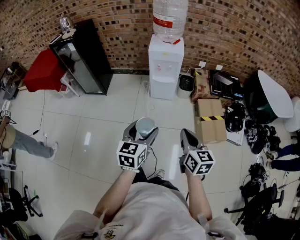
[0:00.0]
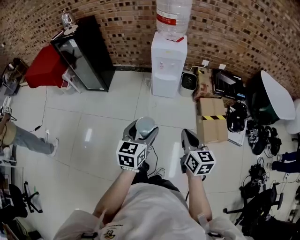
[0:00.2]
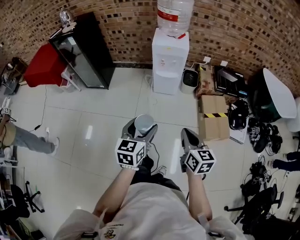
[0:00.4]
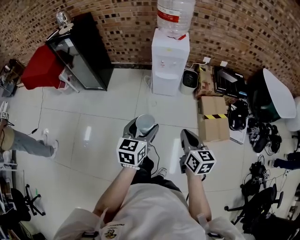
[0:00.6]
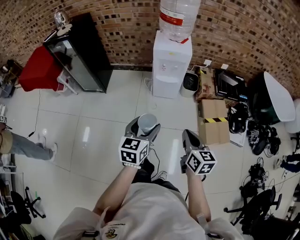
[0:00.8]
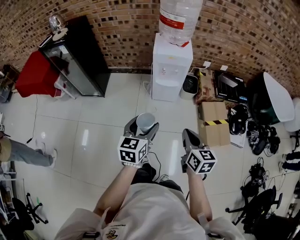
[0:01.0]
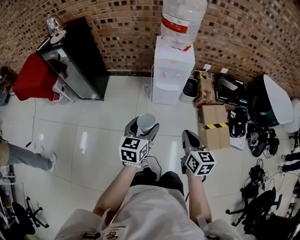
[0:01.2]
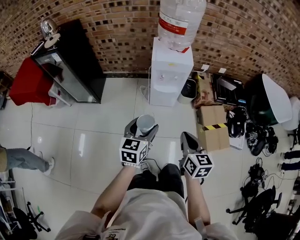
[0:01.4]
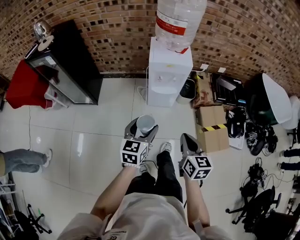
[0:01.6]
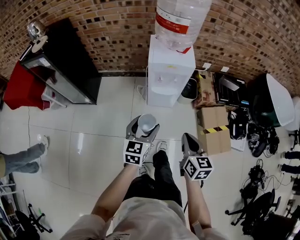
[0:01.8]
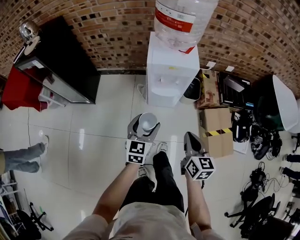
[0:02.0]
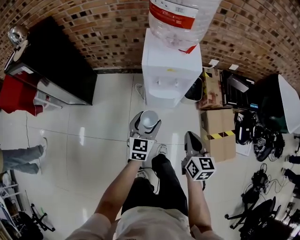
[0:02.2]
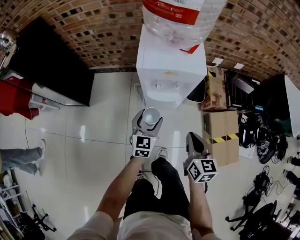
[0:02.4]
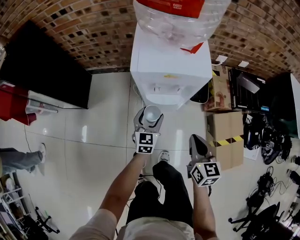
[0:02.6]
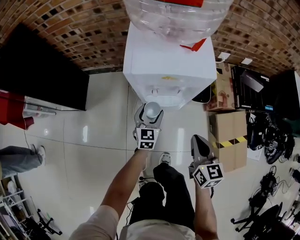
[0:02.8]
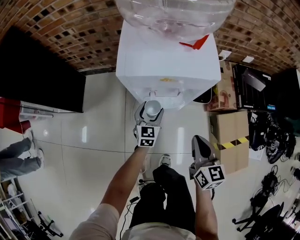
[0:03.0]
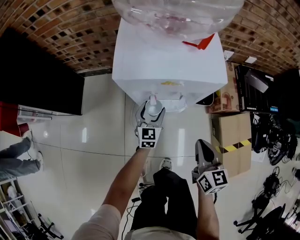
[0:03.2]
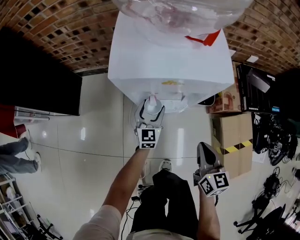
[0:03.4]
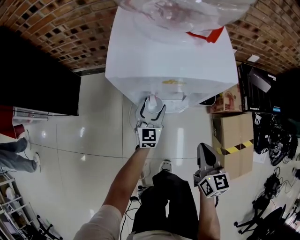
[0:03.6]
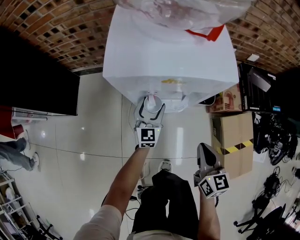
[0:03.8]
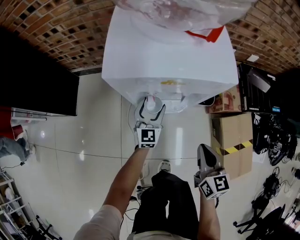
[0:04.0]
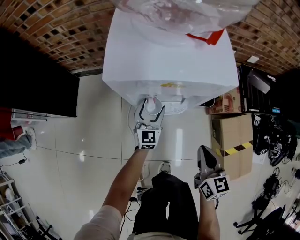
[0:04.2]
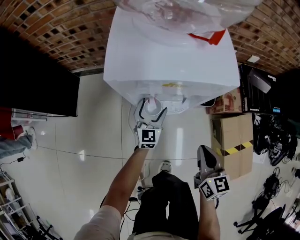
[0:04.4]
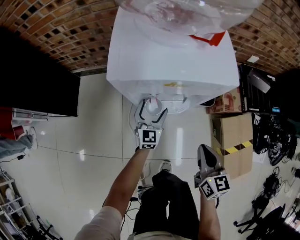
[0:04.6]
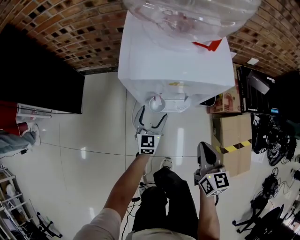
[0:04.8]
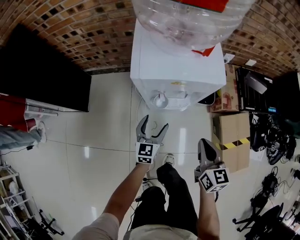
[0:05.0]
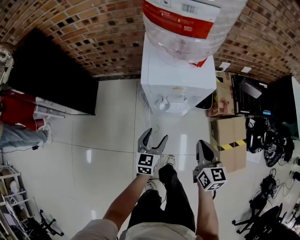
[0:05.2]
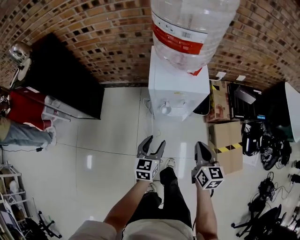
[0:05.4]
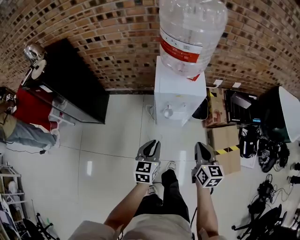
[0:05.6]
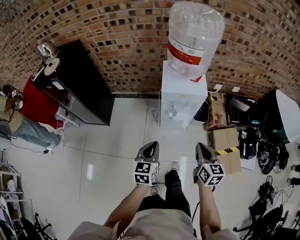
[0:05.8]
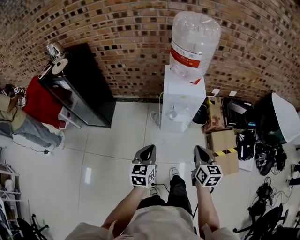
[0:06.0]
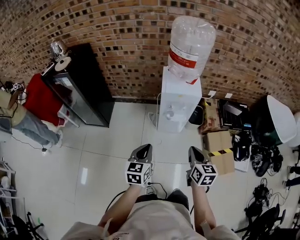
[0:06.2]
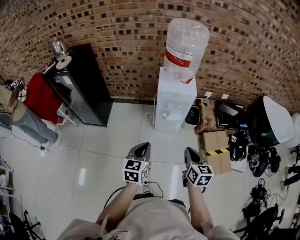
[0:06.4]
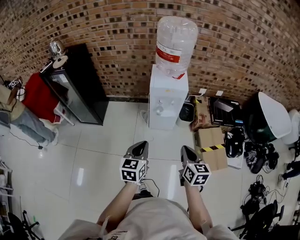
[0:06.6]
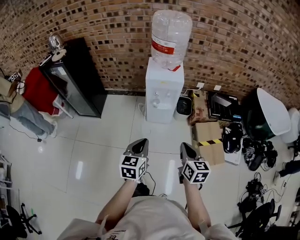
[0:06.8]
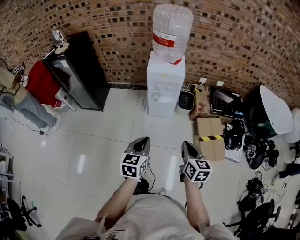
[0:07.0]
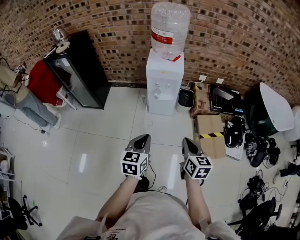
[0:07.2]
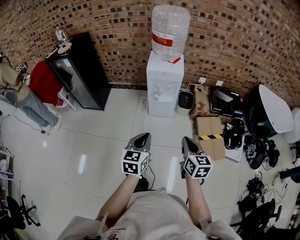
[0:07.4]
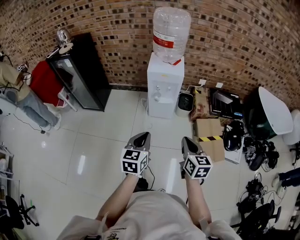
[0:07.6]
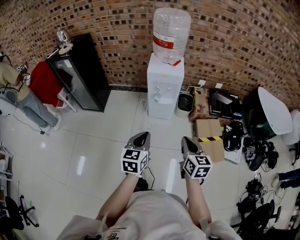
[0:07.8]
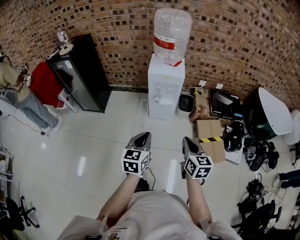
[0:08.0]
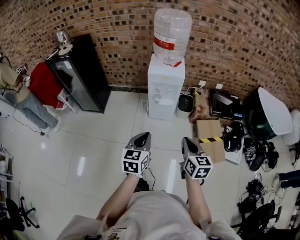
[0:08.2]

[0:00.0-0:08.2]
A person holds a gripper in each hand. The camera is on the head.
0:00.0 to 0:01.6: Both grippers travel together forward, roughly 25 cm.
0:01.6 to 0:03.2: The right gripper heads forward and downward, covering approximately 40 cm. The left gripper travels downward and forward by some 60 cm.
0:03.2 to 0:05.0: The right gripper travels upward by approximately 5 cm. The left gripper heads backward and upward, covering approximately 10 cm.
0:05.0 to 0:06.6: The right gripper heads backward and upward, covering approximately 40 cm; the left gripper is displaced upward and backward by some 50 cm, and closes.
0:06.6 to 0:08.2: Both grippers travel together backward and to the right, approximately 10 cm.

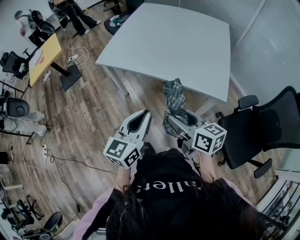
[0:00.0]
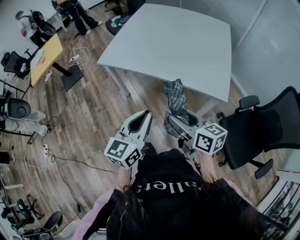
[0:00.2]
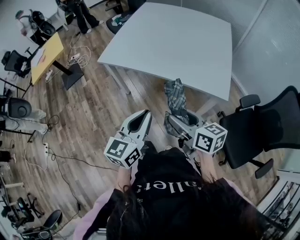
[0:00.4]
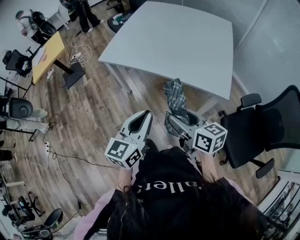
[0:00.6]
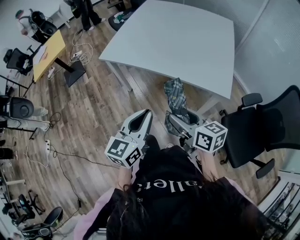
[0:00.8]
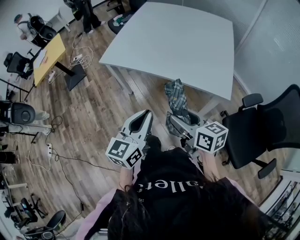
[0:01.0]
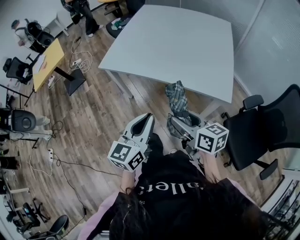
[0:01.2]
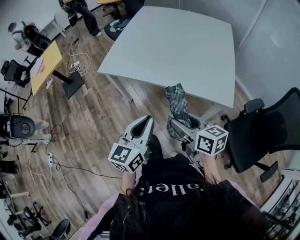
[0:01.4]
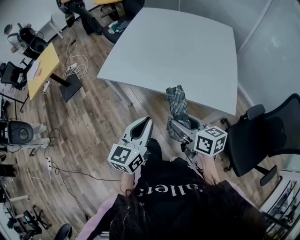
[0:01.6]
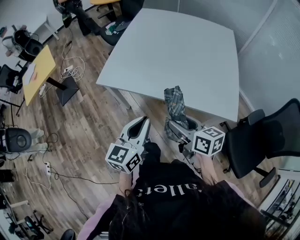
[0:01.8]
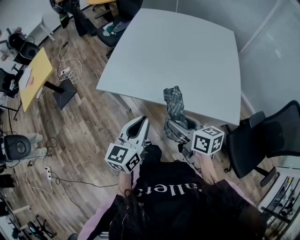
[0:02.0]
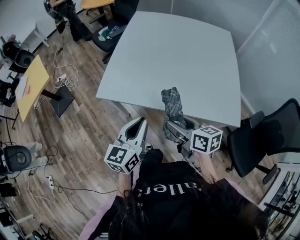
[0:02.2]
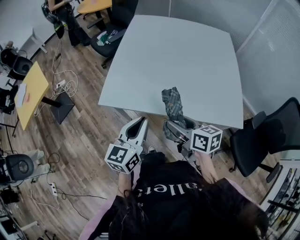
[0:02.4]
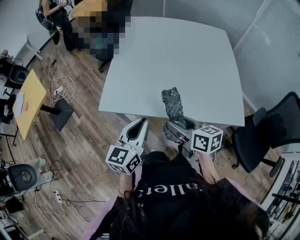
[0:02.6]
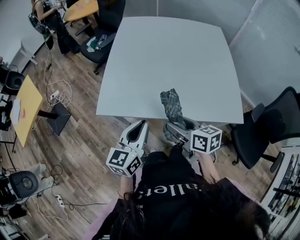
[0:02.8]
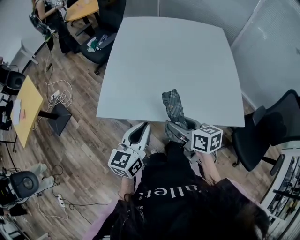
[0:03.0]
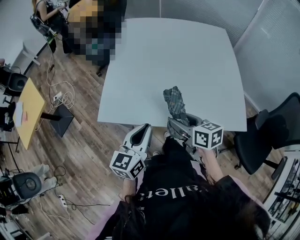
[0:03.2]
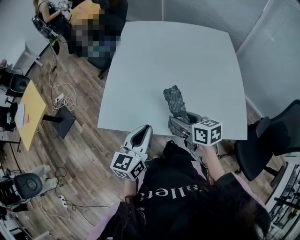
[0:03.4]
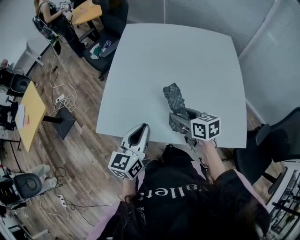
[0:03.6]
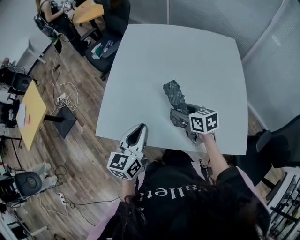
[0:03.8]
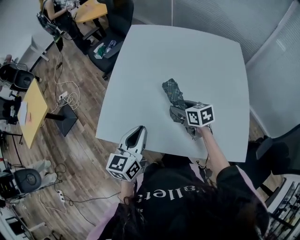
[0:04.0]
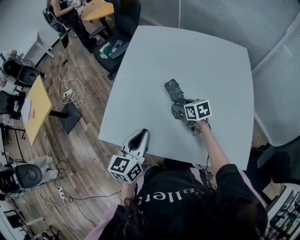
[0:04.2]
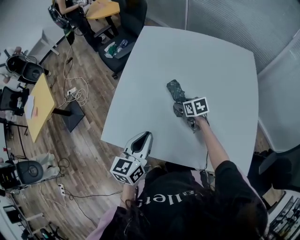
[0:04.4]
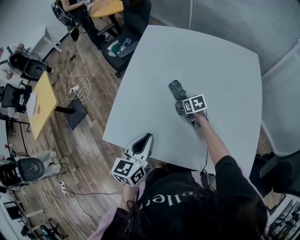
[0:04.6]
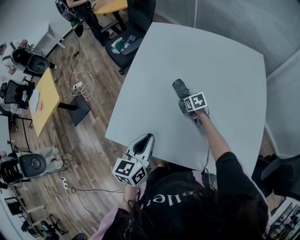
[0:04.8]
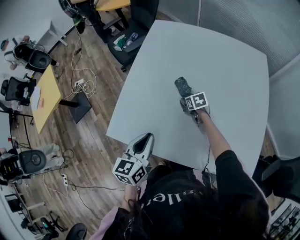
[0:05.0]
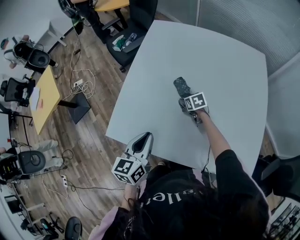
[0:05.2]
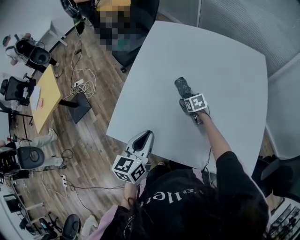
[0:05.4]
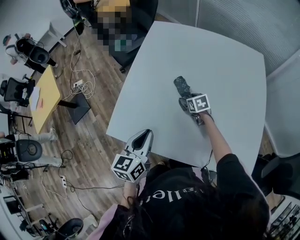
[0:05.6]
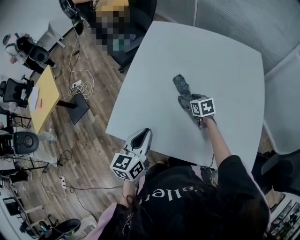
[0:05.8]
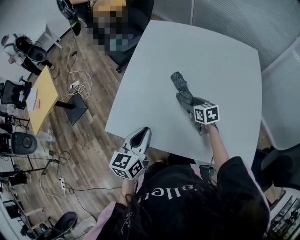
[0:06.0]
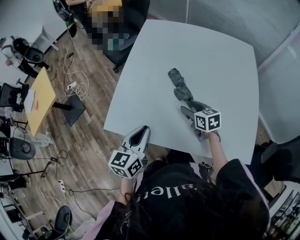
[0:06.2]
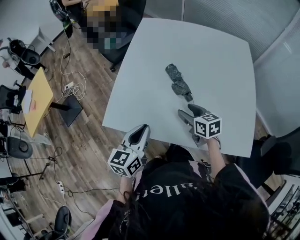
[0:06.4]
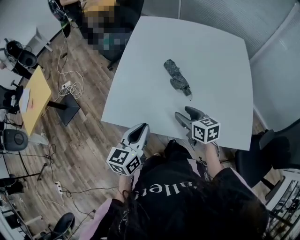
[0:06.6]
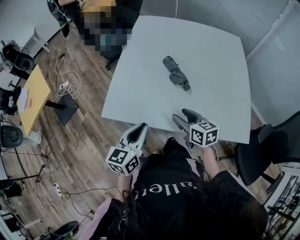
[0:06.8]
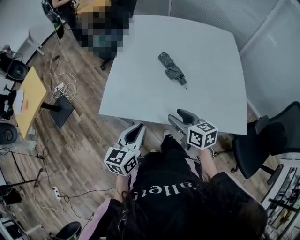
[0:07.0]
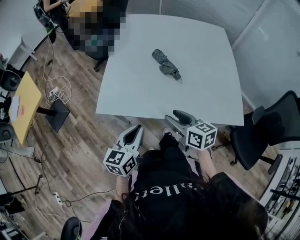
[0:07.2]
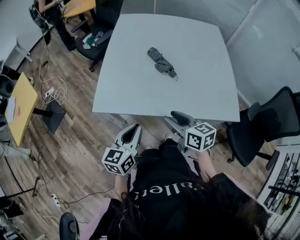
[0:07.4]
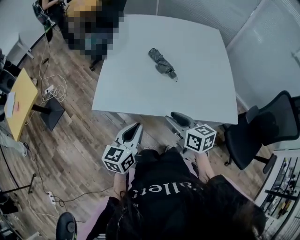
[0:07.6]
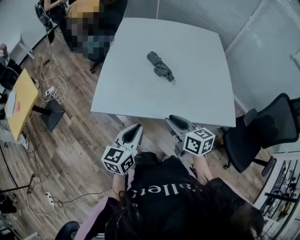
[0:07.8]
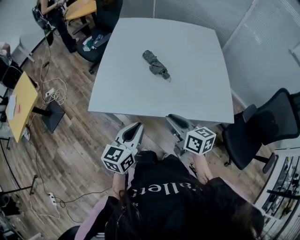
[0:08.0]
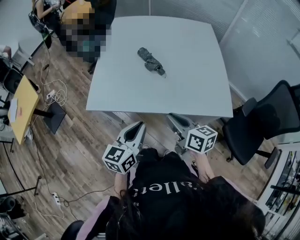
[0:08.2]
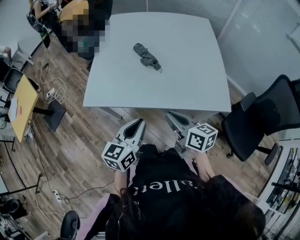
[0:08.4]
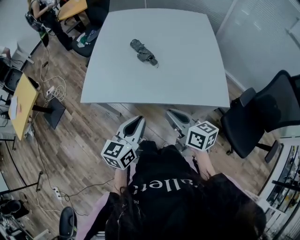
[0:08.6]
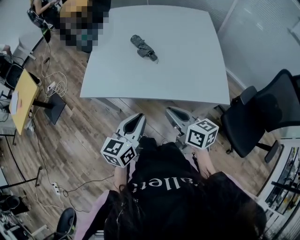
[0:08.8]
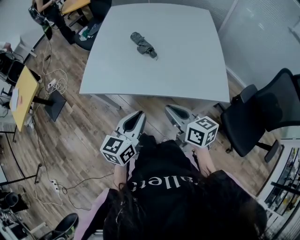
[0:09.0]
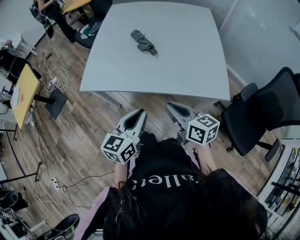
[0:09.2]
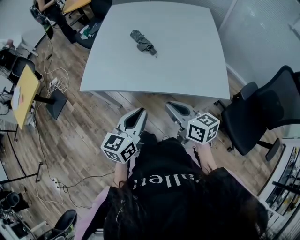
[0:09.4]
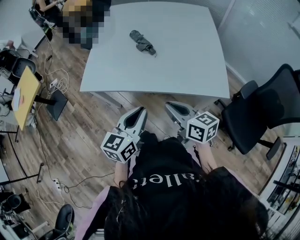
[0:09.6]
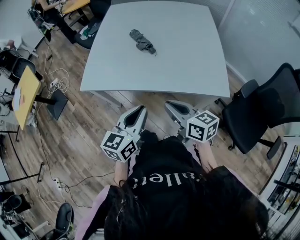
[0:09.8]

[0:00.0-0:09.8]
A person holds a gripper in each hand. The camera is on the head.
0:00.0 to 0:01.4: The grippers move only a little.
0:01.4 to 0:02.8: The grippers both shift forward and to the left by roughly 25 cm.
0:02.8 to 0:04.2: The left gripper travels forward by about 15 cm; the right gripper is displaced forward by about 30 cm, and swivels some 20 degrees.
0:04.2 to 0:05.6: The right gripper shifts about 10 cm downward and forward.
0:05.6 to 0:07.0: The right gripper travels backward and upward by approximately 35 cm, and rotates about 30 degrees. Meanwhile the left gripper moves backward, some 15 cm.
0:07.0 to 0:08.4: The left gripper is displaced to the right and backward by roughly 15 cm. The right gripper heads backward and to the right, covering about 15 cm, and closes.
0:08.4 to 0:09.8: The right gripper shifts by approximately 5 cm; the left gripper shifts approximately 5 cm to the right.

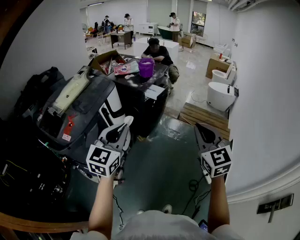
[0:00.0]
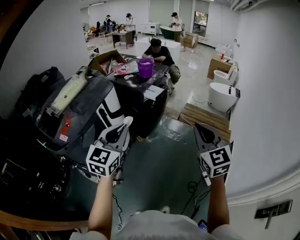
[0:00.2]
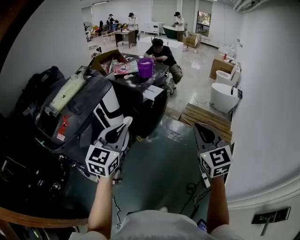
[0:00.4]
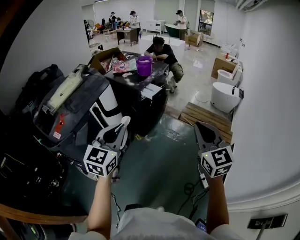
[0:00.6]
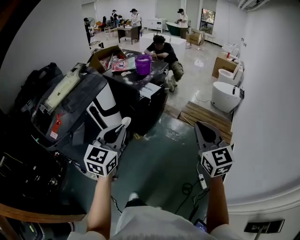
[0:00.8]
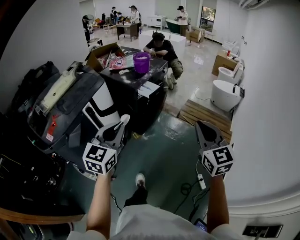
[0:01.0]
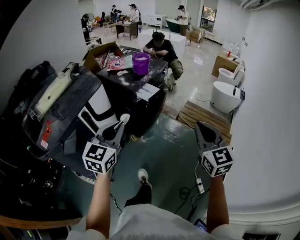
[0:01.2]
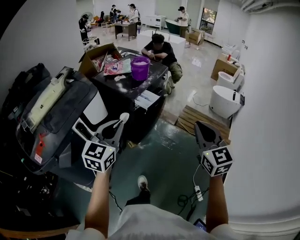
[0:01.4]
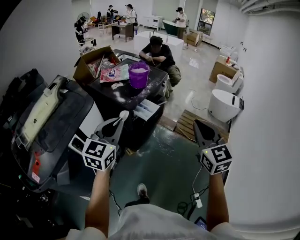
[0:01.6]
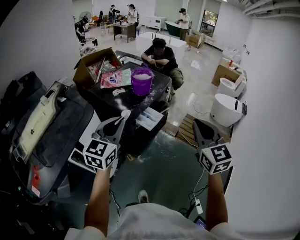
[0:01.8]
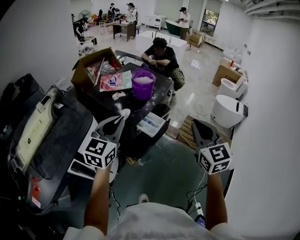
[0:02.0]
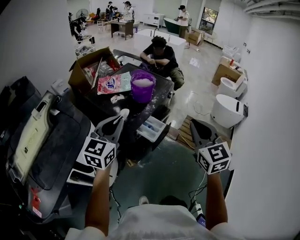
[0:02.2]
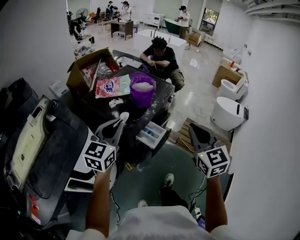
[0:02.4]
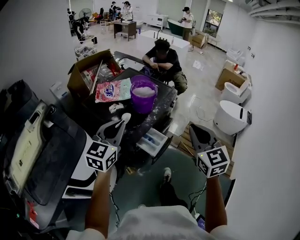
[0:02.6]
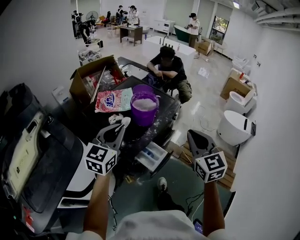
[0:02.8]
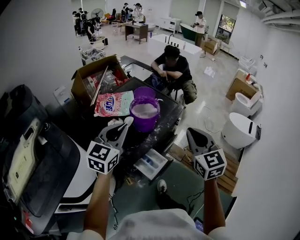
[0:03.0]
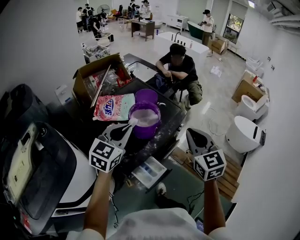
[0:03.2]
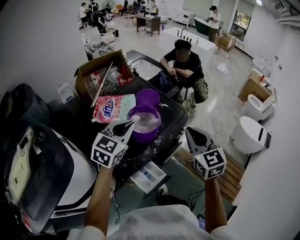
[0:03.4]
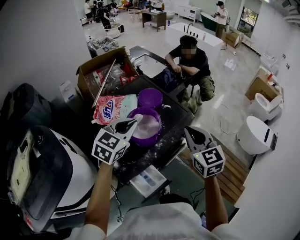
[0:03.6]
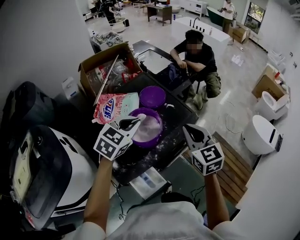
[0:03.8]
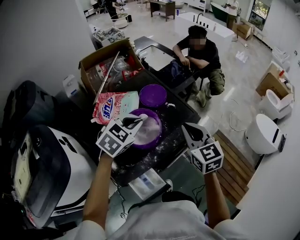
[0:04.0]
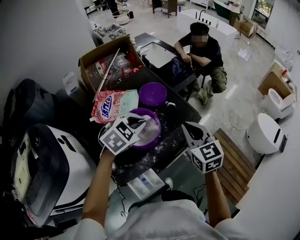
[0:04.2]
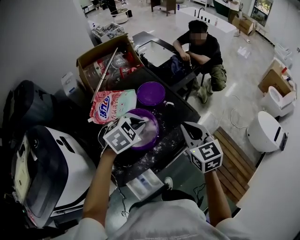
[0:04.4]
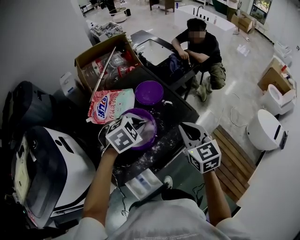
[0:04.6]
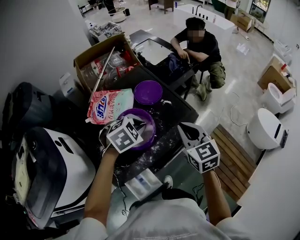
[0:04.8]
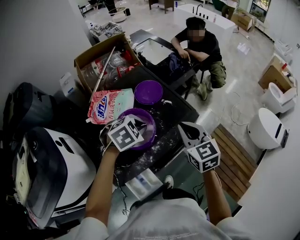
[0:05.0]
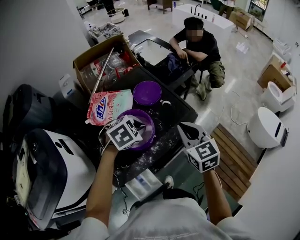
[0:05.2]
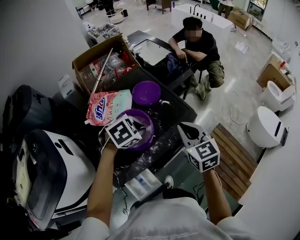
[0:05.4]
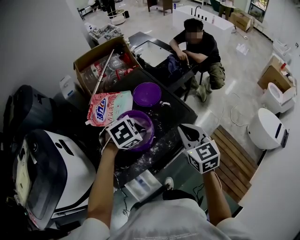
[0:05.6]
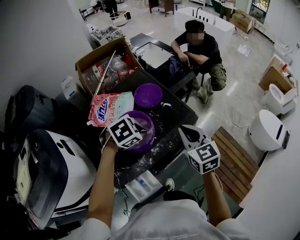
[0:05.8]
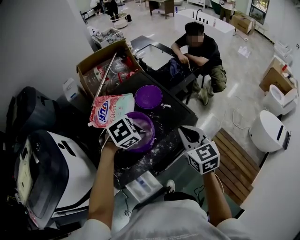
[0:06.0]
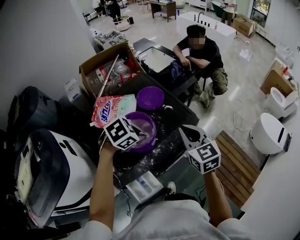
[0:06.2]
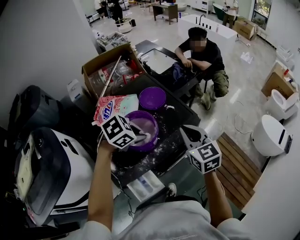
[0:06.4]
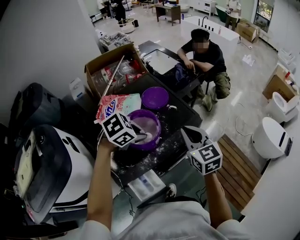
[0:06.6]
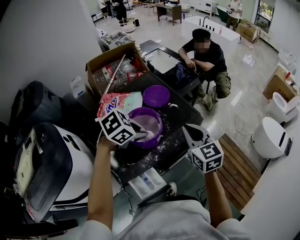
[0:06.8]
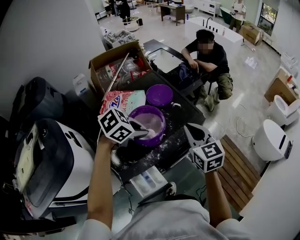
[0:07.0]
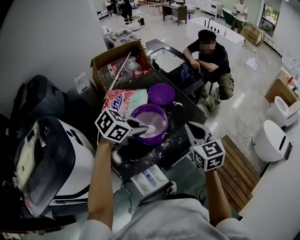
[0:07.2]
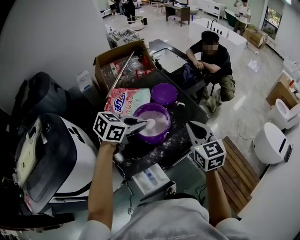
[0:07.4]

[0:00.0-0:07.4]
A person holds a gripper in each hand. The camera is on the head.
0:00.0 to 0:01.4: The grippers both shift forward by some 25 cm.
0:01.4 to 0:03.0: Both grippers are carried forward, some 50 cm.
0:03.0 to 0:04.4: The right gripper shifts approximately 30 cm forward and downward, and turns by roughly 20 degrees; the left gripper moves forward, downward and to the right, roughly 30 cm, and tilts its fingers about 50 degrees downward.
0:04.4 to 0:06.0: There are only small adjustments of the grippers.
0:06.0 to 0:07.4: The left gripper travels upward by roughly 5 cm, and tilts its fingers roughly 30 degrees upward. Meanwhile the right gripper moves roughly 5 cm.
